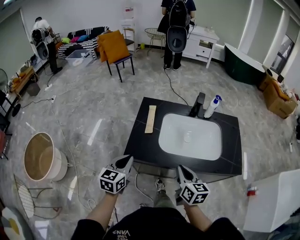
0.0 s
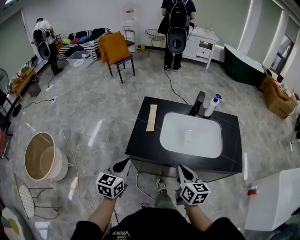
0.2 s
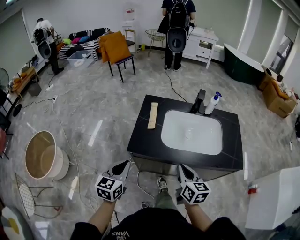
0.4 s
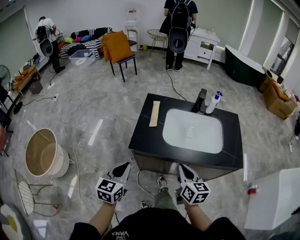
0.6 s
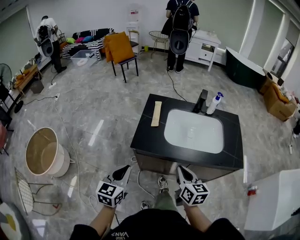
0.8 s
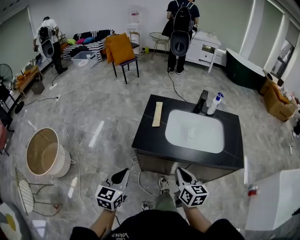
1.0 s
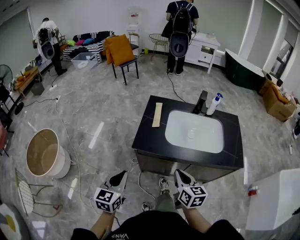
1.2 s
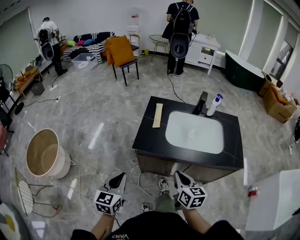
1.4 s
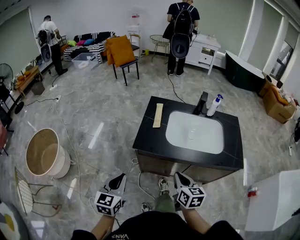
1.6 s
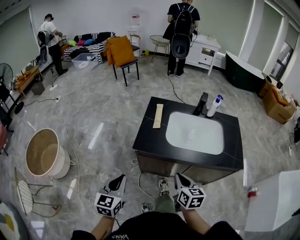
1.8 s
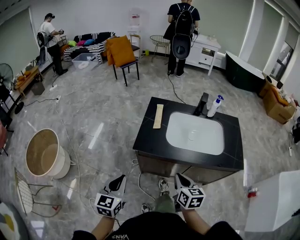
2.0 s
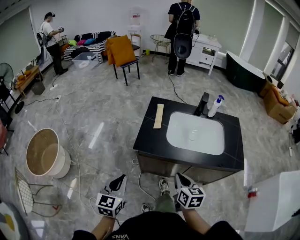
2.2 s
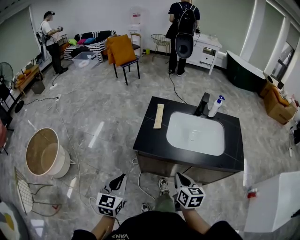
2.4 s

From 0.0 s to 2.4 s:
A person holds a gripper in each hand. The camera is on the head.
From 0.0 s to 1.2 s: The right gripper shifts roughly 10 cm backward. The left gripper is displaced backward by some 15 cm.
From 1.2 s to 2.4 s: The grippers stay close to where they were, moving slightly.
